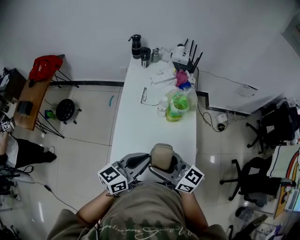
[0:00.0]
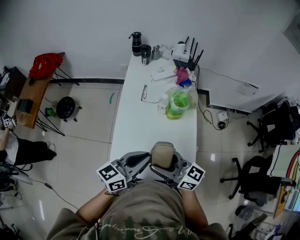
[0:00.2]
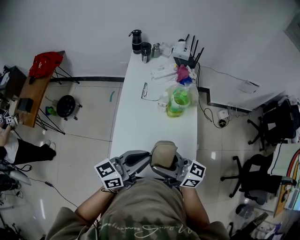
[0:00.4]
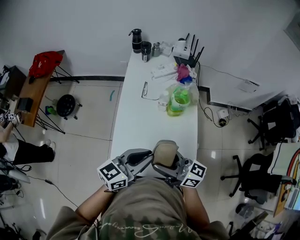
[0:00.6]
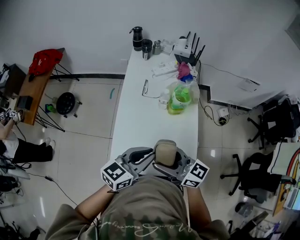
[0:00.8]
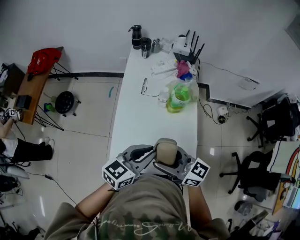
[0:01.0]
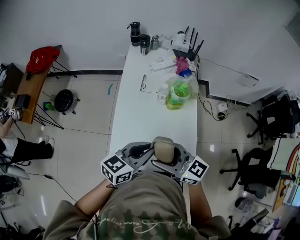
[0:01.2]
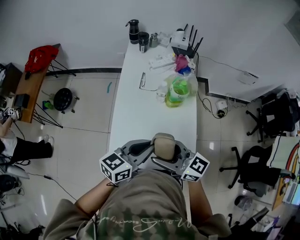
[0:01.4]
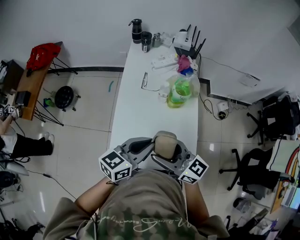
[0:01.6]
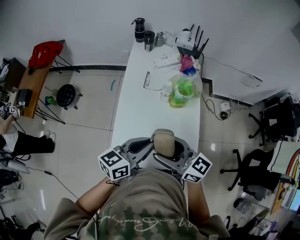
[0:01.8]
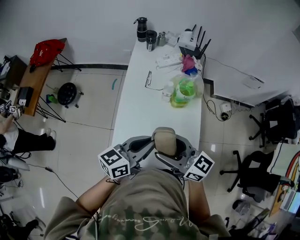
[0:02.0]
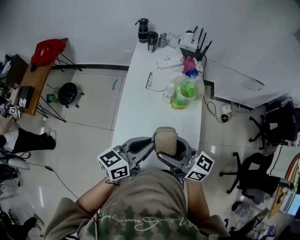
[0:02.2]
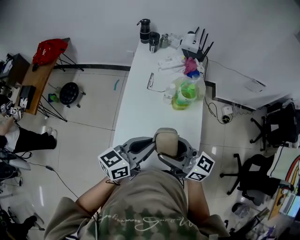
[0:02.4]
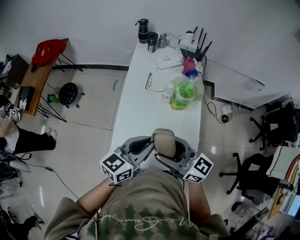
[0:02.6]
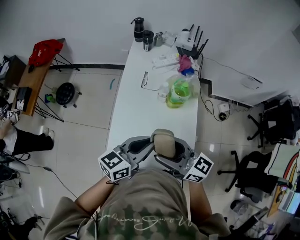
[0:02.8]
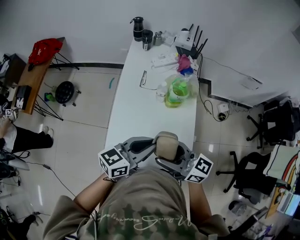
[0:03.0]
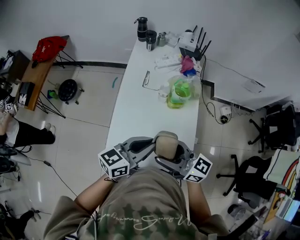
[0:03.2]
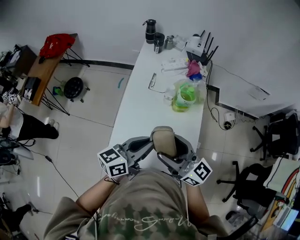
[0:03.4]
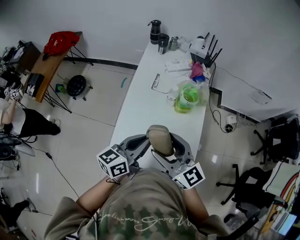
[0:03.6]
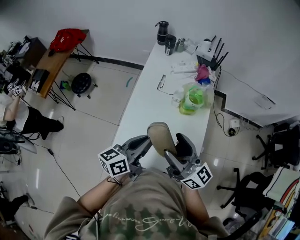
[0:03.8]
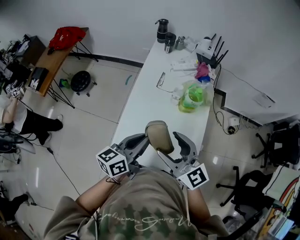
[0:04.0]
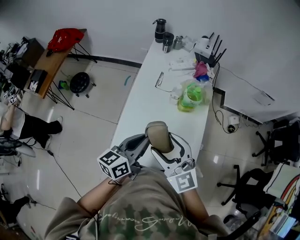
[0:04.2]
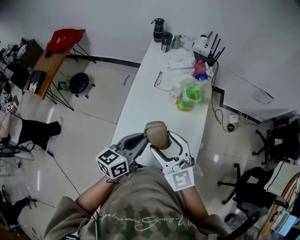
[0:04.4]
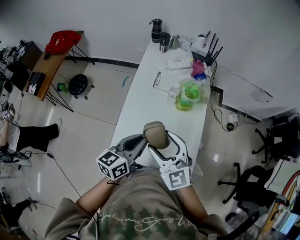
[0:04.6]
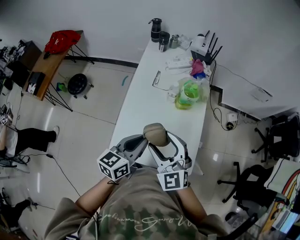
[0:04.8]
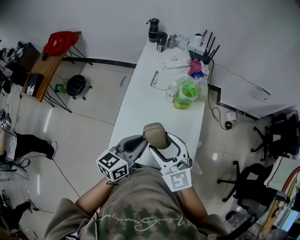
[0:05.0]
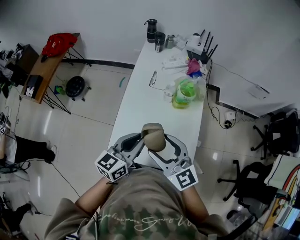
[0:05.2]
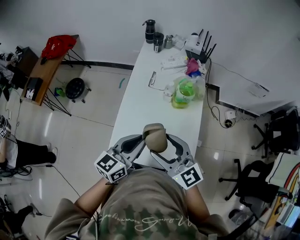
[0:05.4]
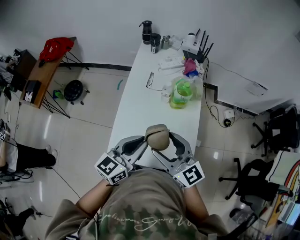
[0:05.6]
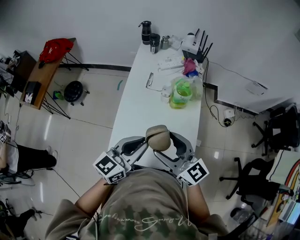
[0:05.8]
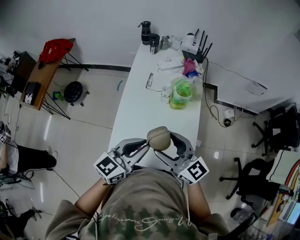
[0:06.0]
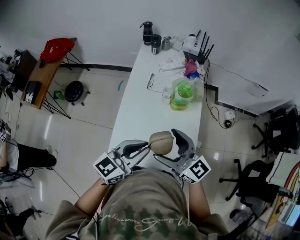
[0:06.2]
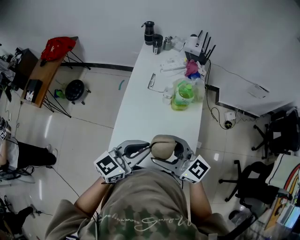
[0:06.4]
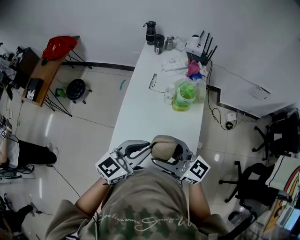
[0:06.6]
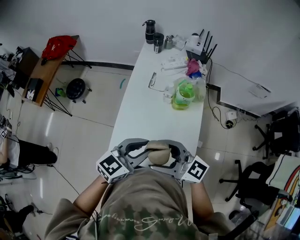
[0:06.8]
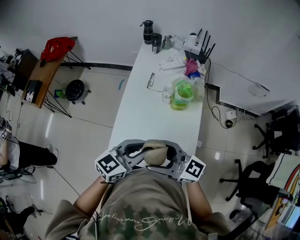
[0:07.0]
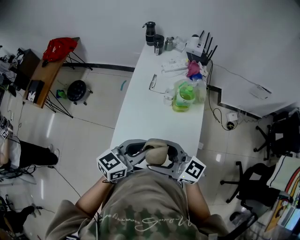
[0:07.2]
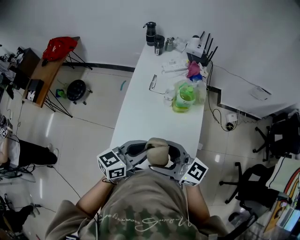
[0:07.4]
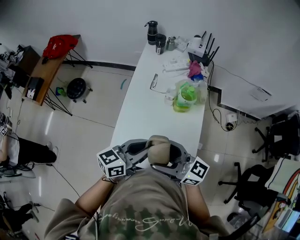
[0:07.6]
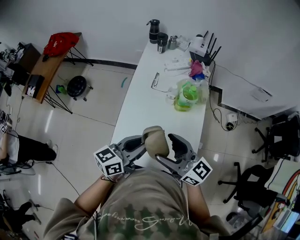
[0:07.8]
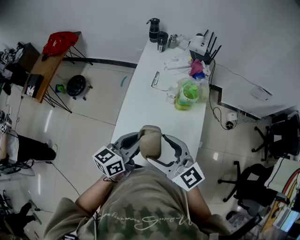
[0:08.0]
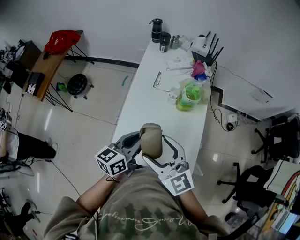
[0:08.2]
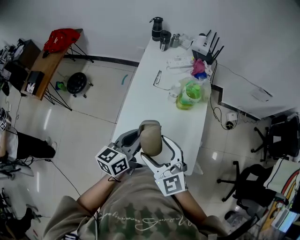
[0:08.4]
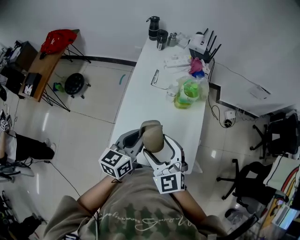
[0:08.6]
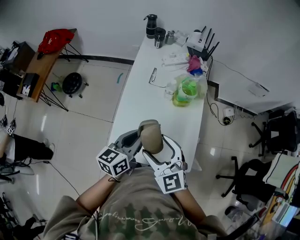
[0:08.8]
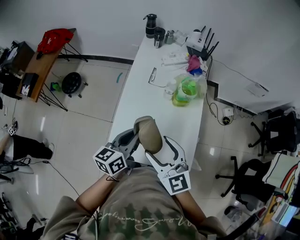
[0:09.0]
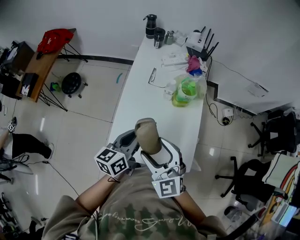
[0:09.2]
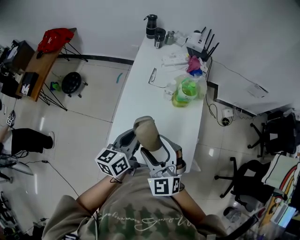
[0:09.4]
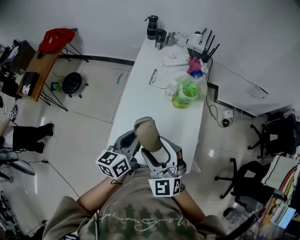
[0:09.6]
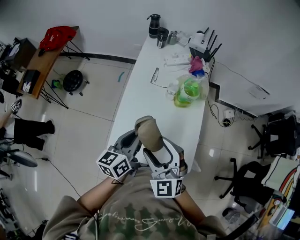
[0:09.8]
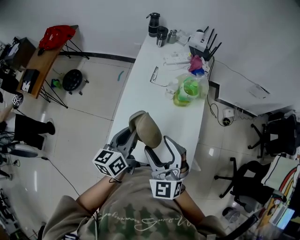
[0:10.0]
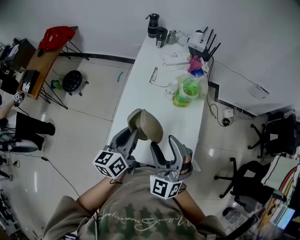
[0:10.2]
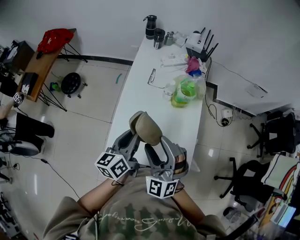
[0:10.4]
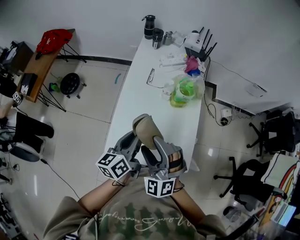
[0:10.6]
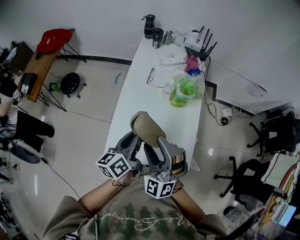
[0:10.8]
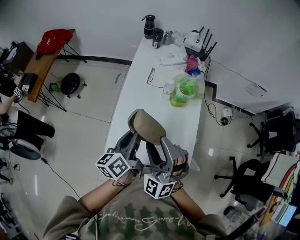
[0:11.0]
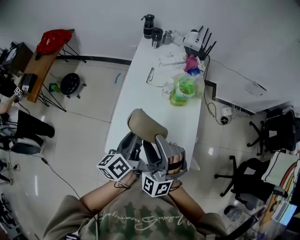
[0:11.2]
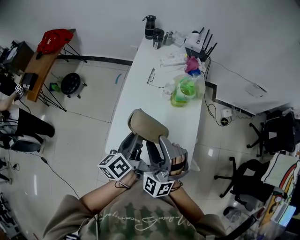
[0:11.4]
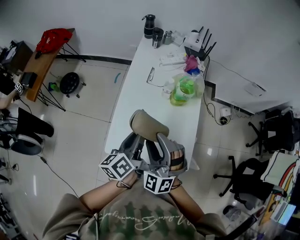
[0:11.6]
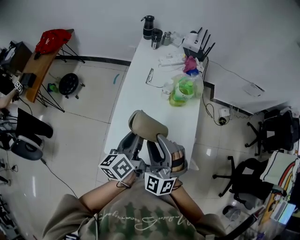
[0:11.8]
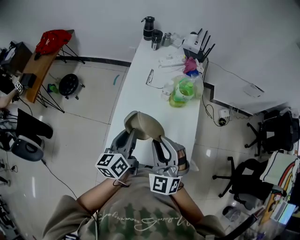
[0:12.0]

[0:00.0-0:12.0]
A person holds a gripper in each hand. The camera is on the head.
0:00.0 to 0:03.0: There are only small adjustments of the grippers.
0:03.0 to 0:04.4: The left gripper is displaced to the left by roughly 5 cm, and swivels approximately 20 degrees. Meanwhile the right gripper turns by roughly 50 degrees.
0:04.4 to 0:06.0: The left gripper changes place by some 5 cm, and turns by approximately 20 degrees, while the right gripper rotates some 30 degrees.
0:06.0 to 0:07.6: The right gripper swivels some 20 degrees.
0:07.6 to 0:09.0: The left gripper heads to the left, covering roughly 5 cm, and turns by roughly 20 degrees. Meanwhile the right gripper rotates about 50 degrees.
0:09.0 to 0:10.4: The right gripper rotates around the line of its fingers by roughly 40 degrees, counterclockwise from behind.
0:10.4 to 0:12.0: The right gripper closes up.

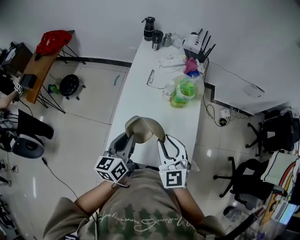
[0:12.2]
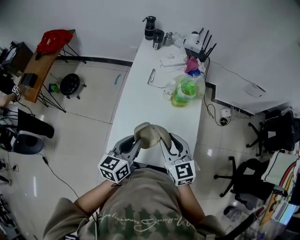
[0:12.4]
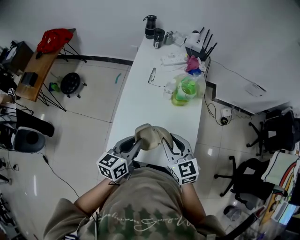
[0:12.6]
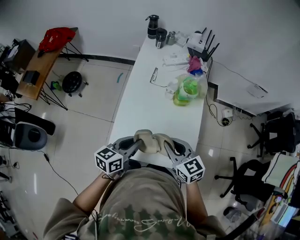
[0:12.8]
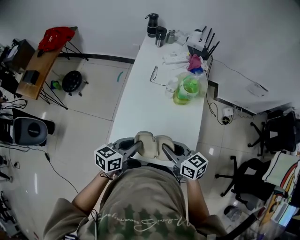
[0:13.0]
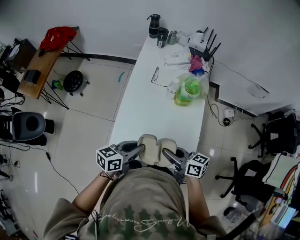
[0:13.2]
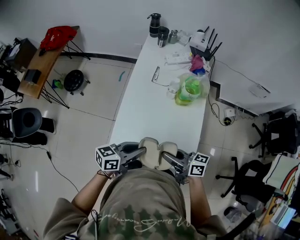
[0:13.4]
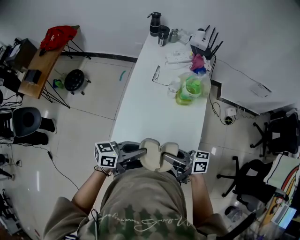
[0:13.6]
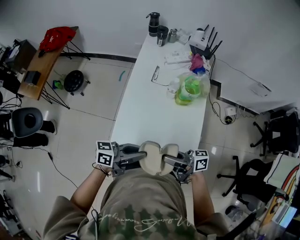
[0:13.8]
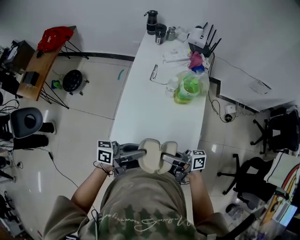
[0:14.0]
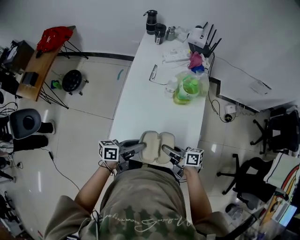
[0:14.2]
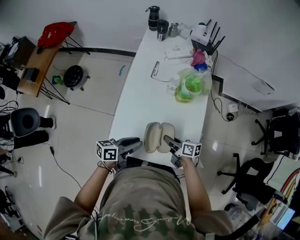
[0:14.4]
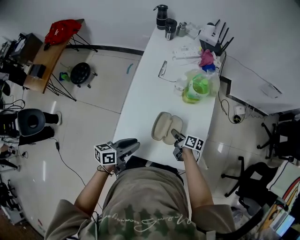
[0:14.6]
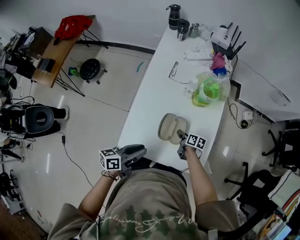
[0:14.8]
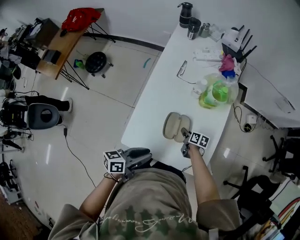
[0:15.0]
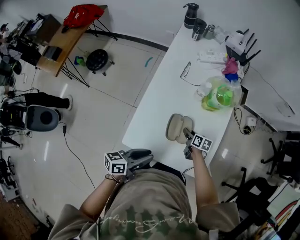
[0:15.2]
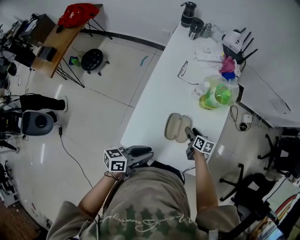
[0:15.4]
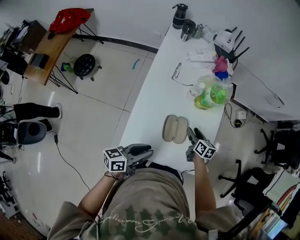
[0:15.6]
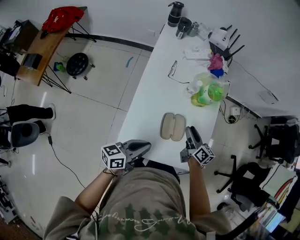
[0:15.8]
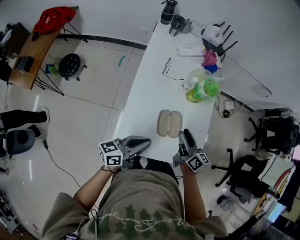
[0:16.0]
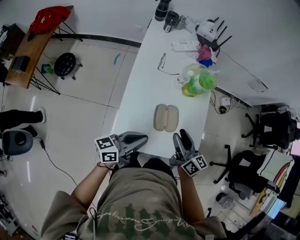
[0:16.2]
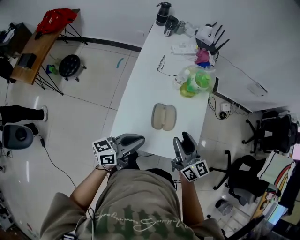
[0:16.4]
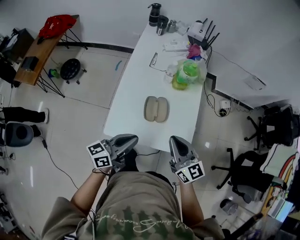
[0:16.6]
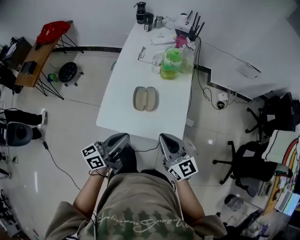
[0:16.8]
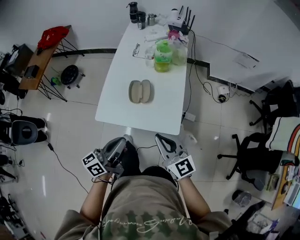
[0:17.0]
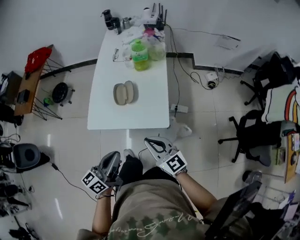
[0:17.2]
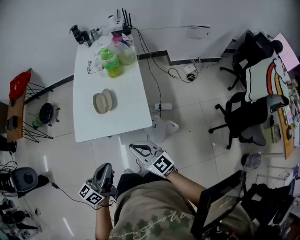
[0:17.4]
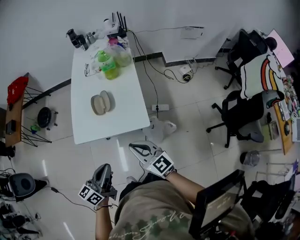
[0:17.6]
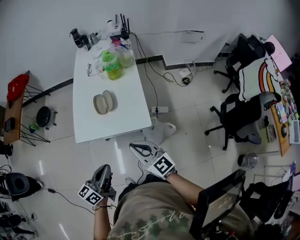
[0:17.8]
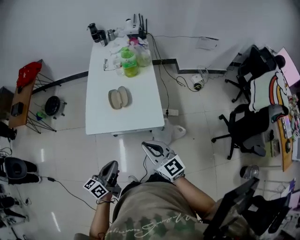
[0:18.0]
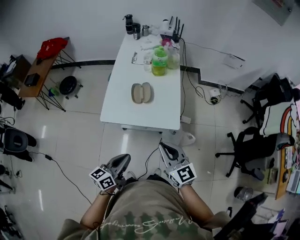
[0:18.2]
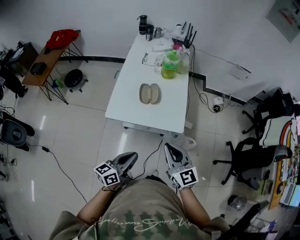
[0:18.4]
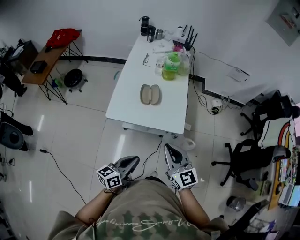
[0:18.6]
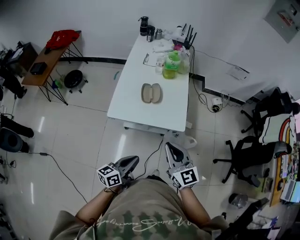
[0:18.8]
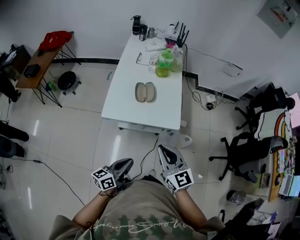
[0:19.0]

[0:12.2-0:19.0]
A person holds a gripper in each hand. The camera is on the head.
0:12.2 to 0:13.6: The right gripper goes some 5 cm downward, and changes its angle by approximately 90 degrees. The left gripper moves some 10 cm, and rotates roughly 50 degrees.
0:13.6 to 0:15.0: The right gripper moves downward, some 30 cm, and tilts its fingers about 50 degrees downward. Meanwhile the left gripper shifts some 5 cm downward, and swivels roughly 20 degrees.
0:15.0 to 0:16.2: The right gripper is displaced upward by approximately 30 cm, tilts its fingers roughly 40 degrees upward, and opens its fingers, while the left gripper is displaced upward by approximately 5 cm, changes its angle by some 20 degrees, and closes up.
0:16.2 to 0:17.6: The two grippers go about 35 cm backward and to the right. The right gripper changes its angle by about 30 degrees, and closes its fingers.
0:17.6 to 0:19.0: The right gripper heads to the left, backward and upward, covering approximately 10 cm, while the left gripper moves backward, to the left and downward, about 15 cm.

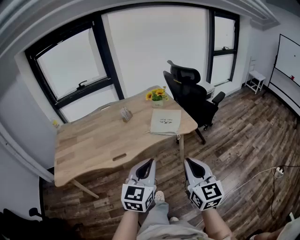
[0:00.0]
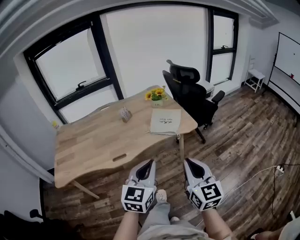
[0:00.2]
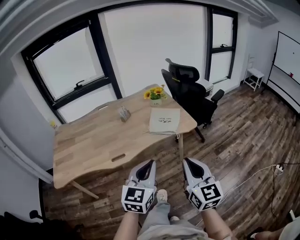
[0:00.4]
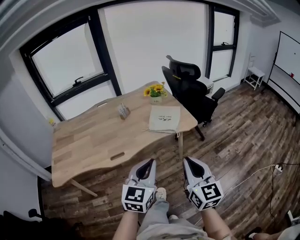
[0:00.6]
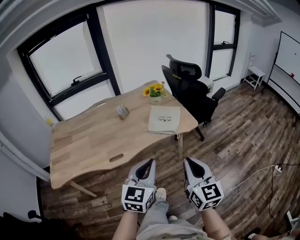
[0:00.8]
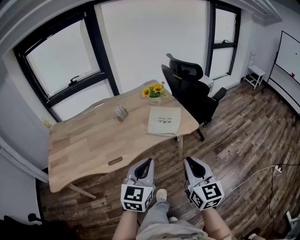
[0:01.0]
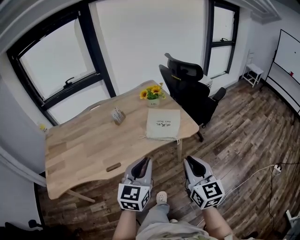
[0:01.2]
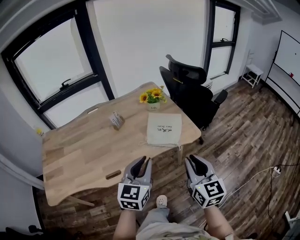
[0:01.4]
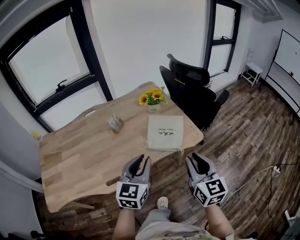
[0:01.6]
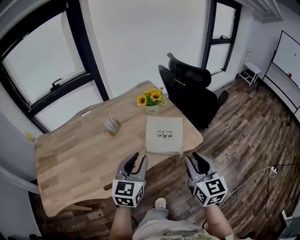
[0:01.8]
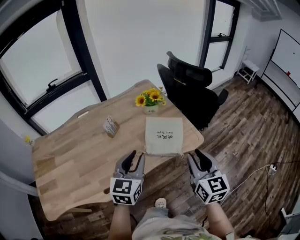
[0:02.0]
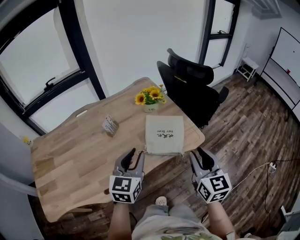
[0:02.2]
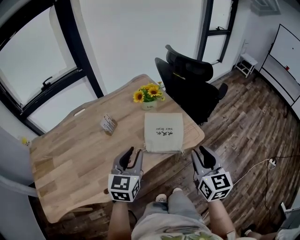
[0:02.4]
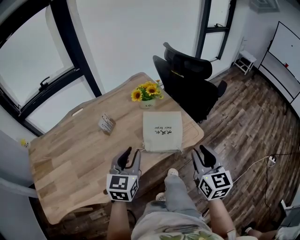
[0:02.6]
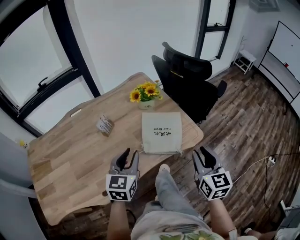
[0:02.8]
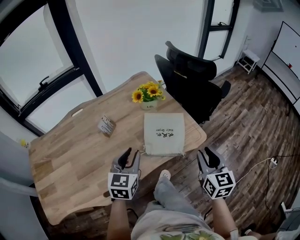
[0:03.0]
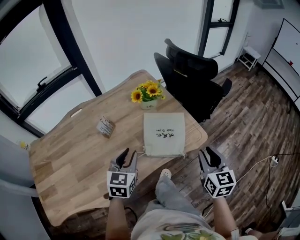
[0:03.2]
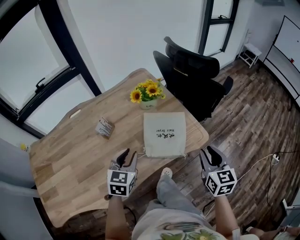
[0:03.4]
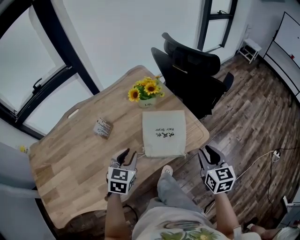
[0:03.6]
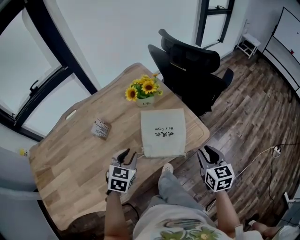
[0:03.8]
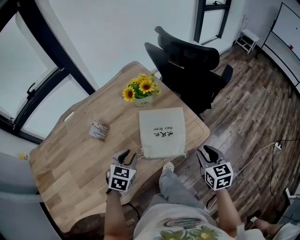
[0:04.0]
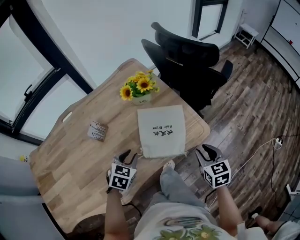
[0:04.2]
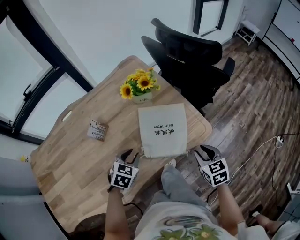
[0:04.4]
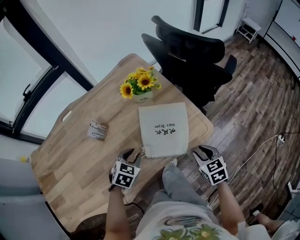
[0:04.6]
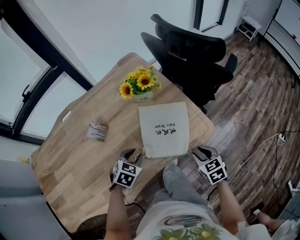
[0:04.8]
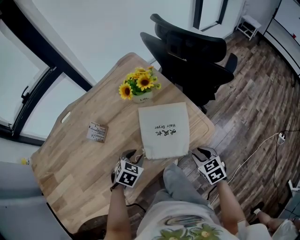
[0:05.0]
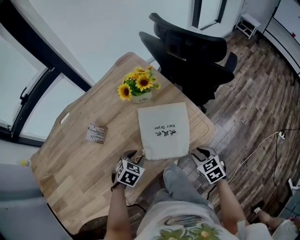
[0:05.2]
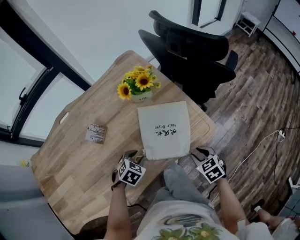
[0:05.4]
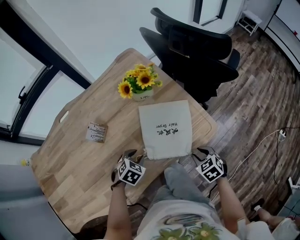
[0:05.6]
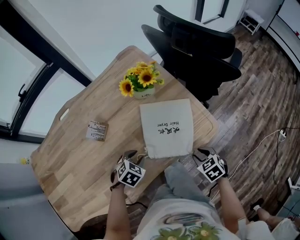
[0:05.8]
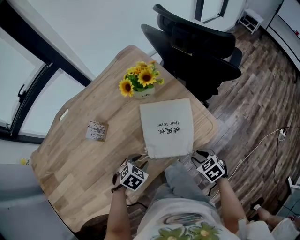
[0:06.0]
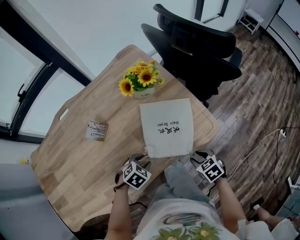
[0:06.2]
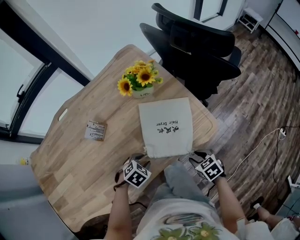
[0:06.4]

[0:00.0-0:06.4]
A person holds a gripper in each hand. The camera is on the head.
0:00.0 to 0:01.6: Both grippers move forward, some 25 cm.
0:01.6 to 0:03.2: The left gripper is displaced forward, downward and to the left by about 20 cm; the right gripper shifts roughly 15 cm forward and downward.
0:03.2 to 0:04.8: Both grippers move downward, some 20 cm. The right gripper turns by roughly 30 degrees, while the left gripper tips its fingers downward by approximately 30 degrees.
0:04.8 to 0:06.4: Both grippers travel together downward, roughly 5 cm. The left gripper turns by roughly 20 degrees.
